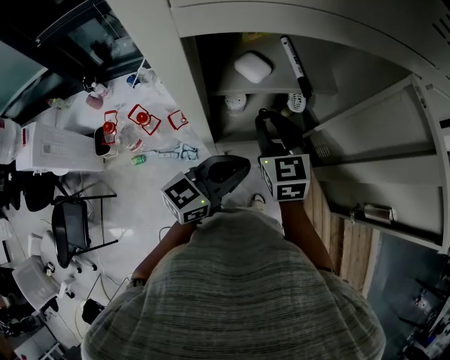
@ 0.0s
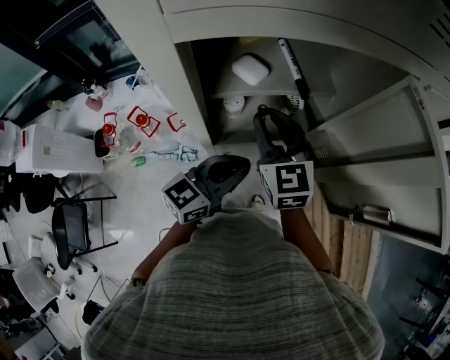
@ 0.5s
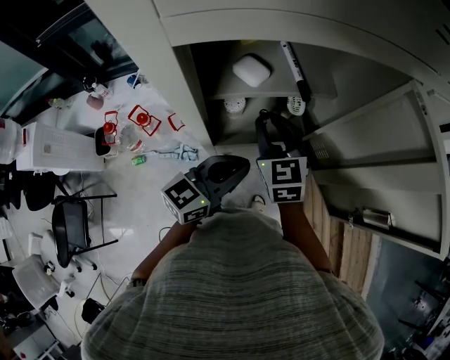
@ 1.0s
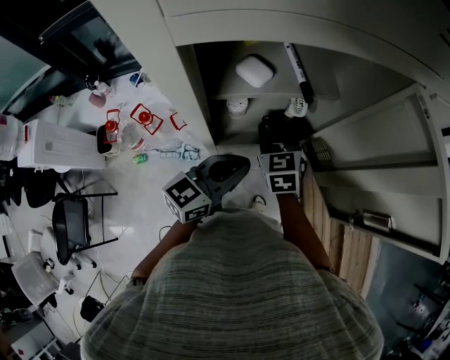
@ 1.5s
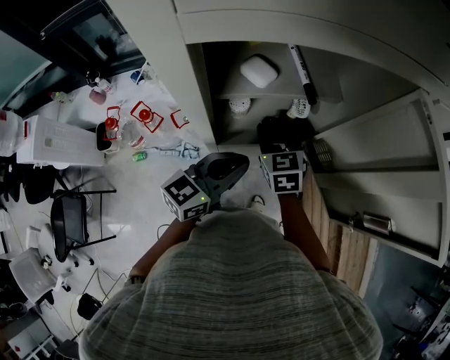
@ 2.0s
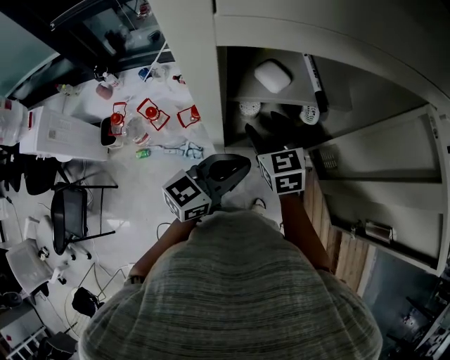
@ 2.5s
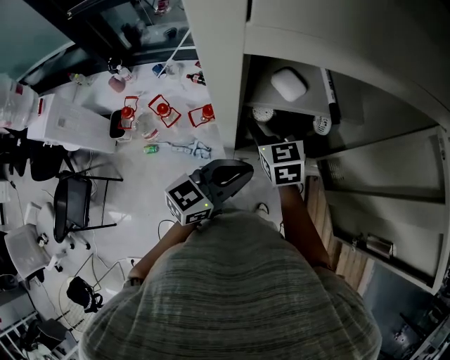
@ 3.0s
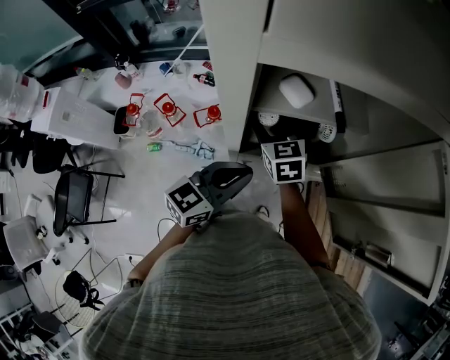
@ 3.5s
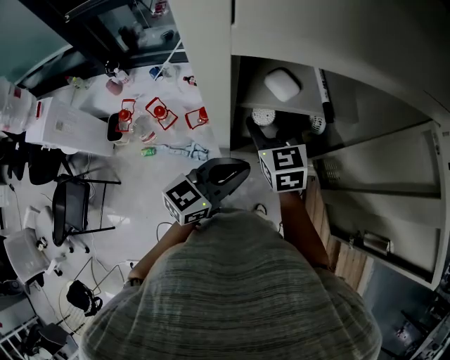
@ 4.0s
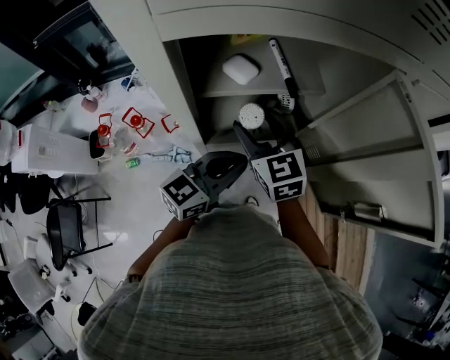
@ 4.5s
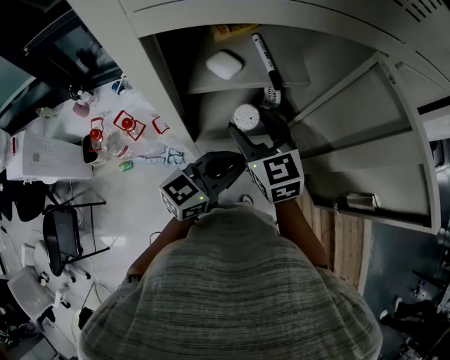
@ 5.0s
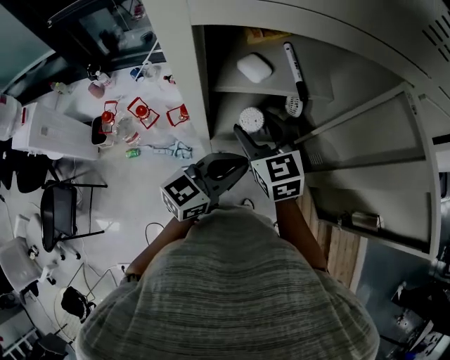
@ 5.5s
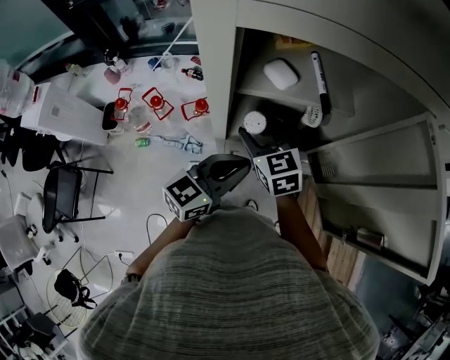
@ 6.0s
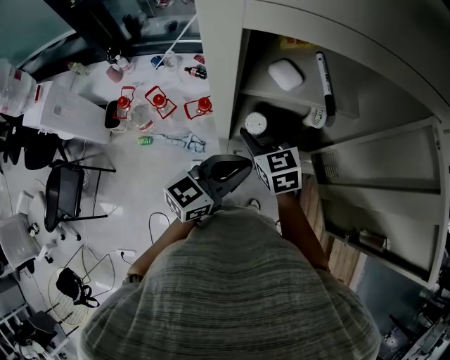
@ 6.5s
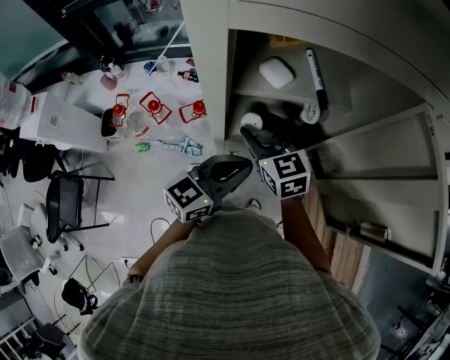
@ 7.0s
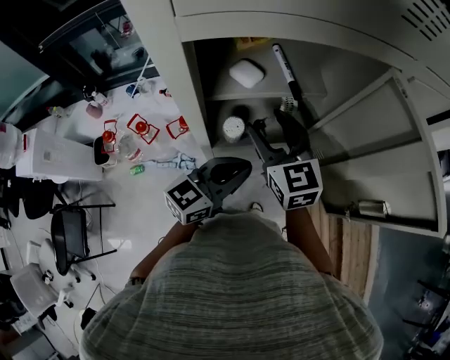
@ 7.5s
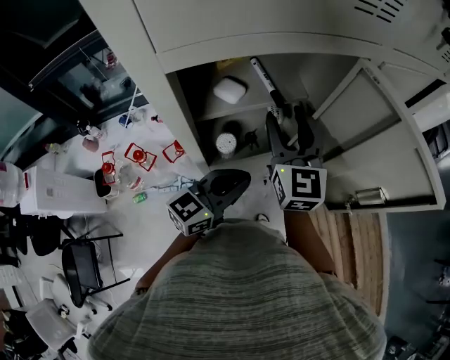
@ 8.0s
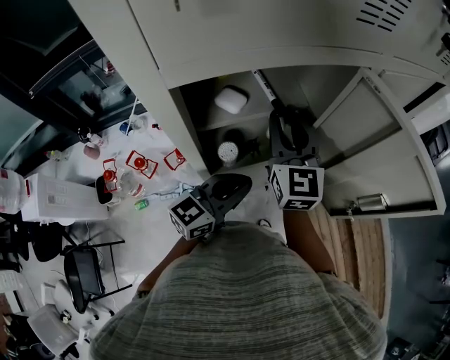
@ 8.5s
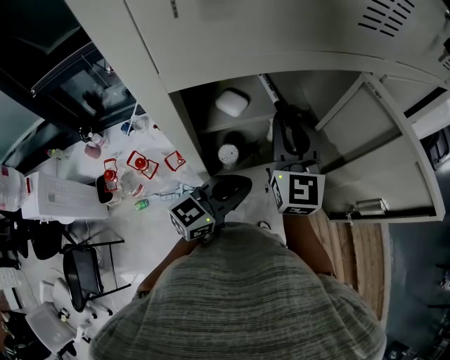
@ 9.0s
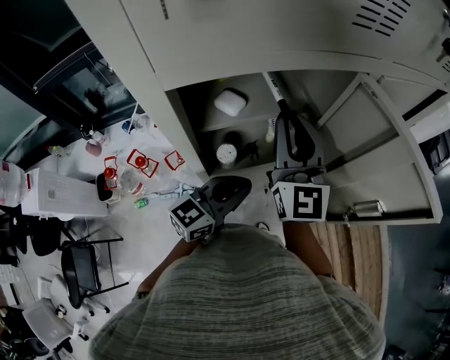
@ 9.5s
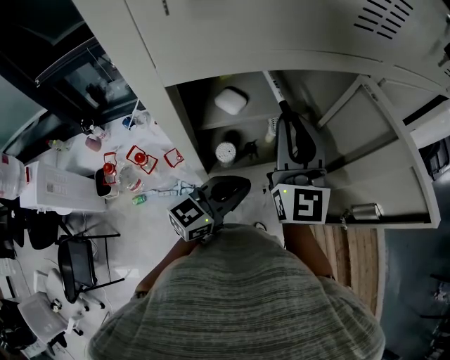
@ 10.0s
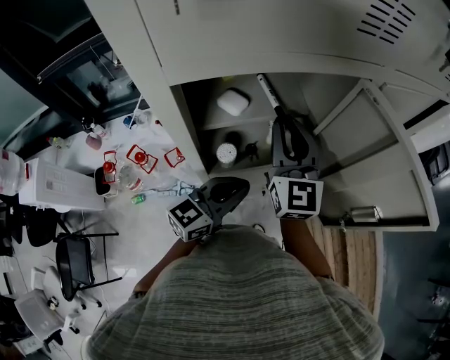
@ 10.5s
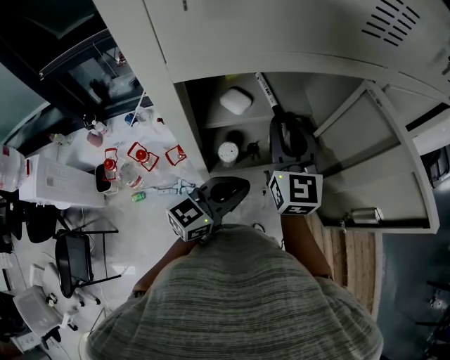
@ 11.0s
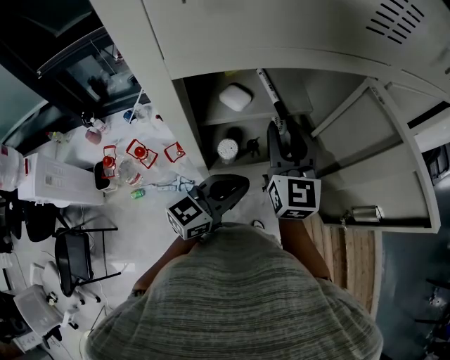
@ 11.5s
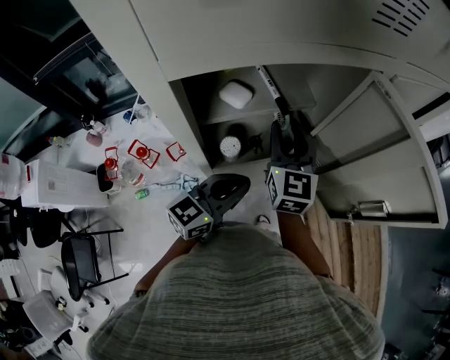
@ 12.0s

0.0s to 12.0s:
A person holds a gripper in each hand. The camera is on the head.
0.0s to 2.0s: The right gripper shifts approximately 5 cm downward.
2.0s to 4.0s: The right gripper is displaced to the left and upward by some 10 cm, and opens.
4.0s to 6.0s: The left gripper moves roughly 10 cm to the right and comes back.
6.0s to 8.0s: The right gripper moves upward, about 15 cm, and changes its angle by about 50 degrees.
8.0s to 10.0s: The right gripper goes some 5 cm upward, and closes its fingers.
10.0s to 12.0s: The right gripper travels downward by about 10 cm, and changes its angle by approximately 20 degrees.

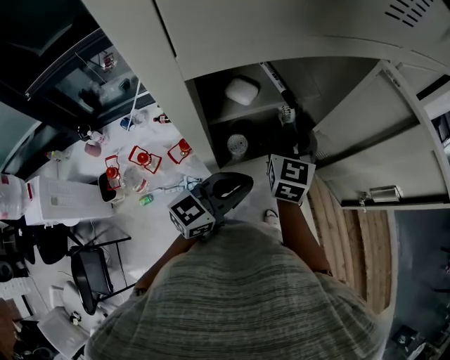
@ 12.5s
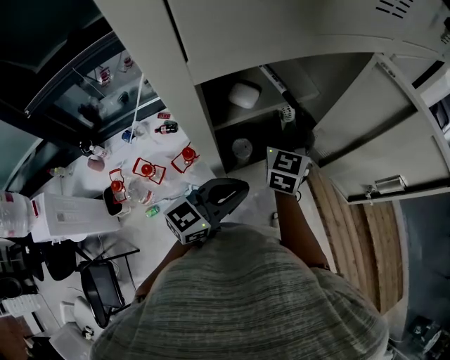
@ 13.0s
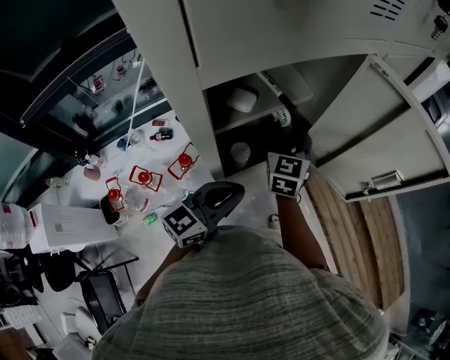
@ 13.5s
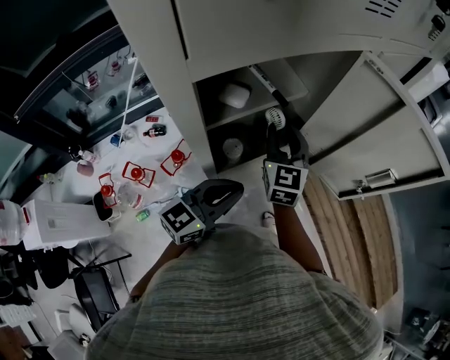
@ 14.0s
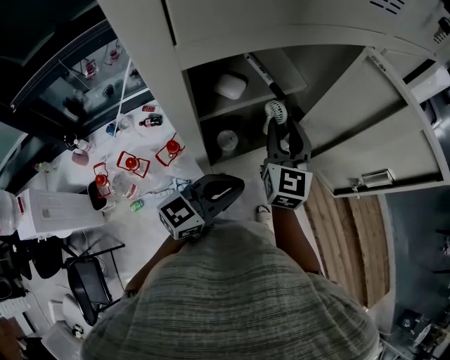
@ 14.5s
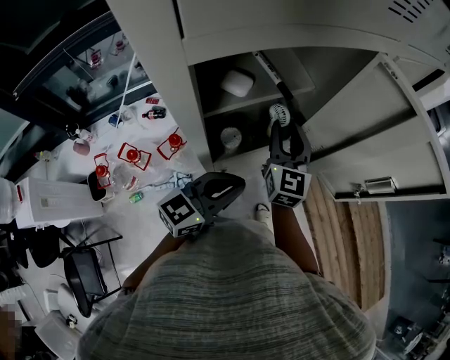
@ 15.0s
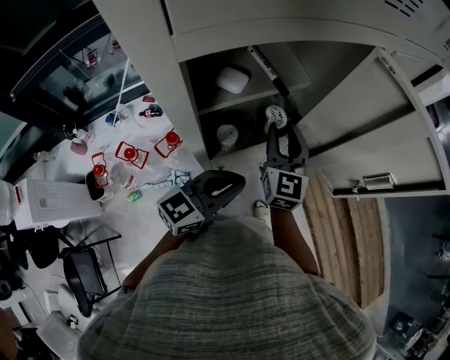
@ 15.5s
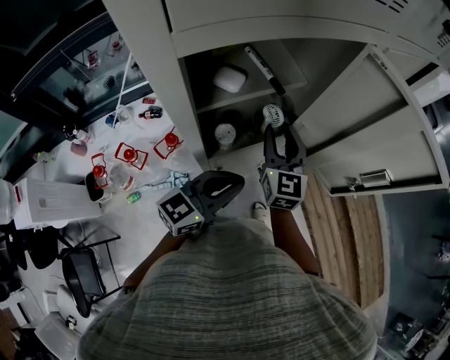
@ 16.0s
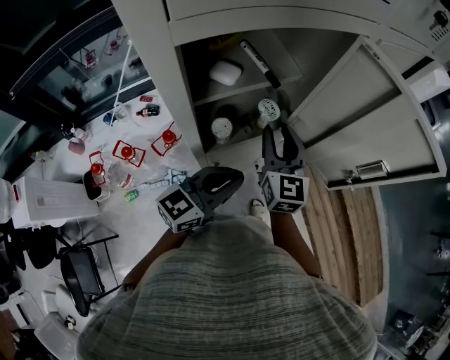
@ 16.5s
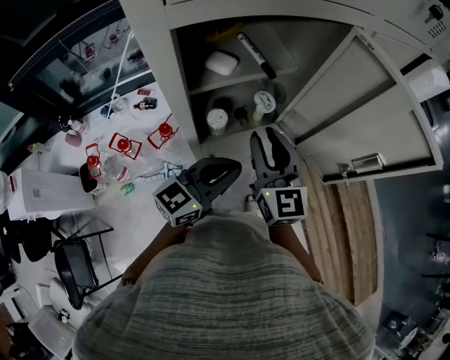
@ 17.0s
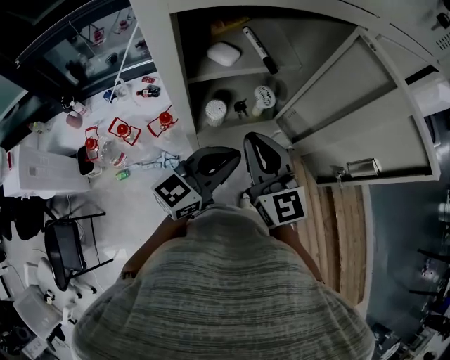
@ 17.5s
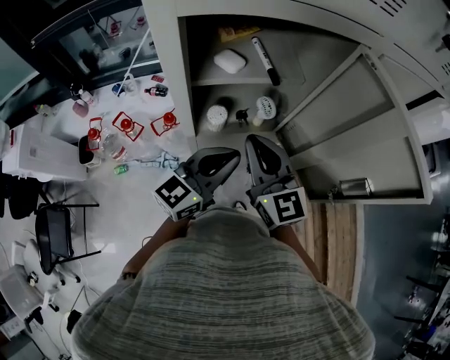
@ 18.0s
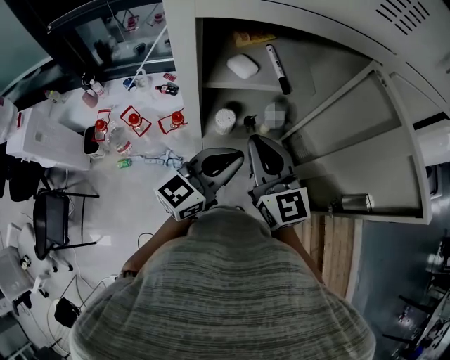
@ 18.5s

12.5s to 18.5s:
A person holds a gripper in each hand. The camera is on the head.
12.5s to 14.5s: The grippers move only a little.
14.5s to 16.5s: The grippers make only small movements.
16.5s to 18.5s: The left gripper changes its angle by approximately 30 degrees, while the right gripper shifts by roughly 10 cm, rotates about 40 degrees, and closes its fingers.

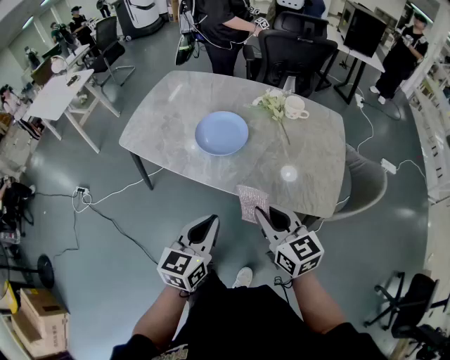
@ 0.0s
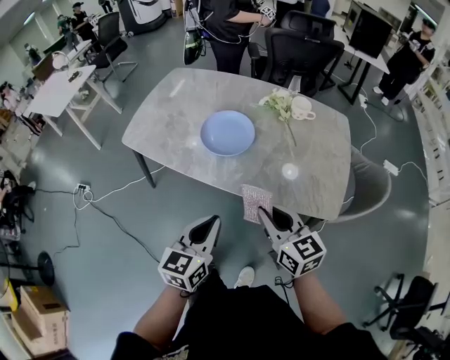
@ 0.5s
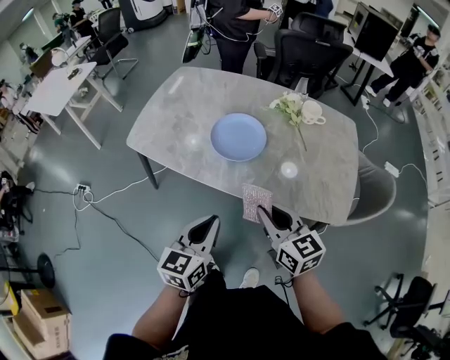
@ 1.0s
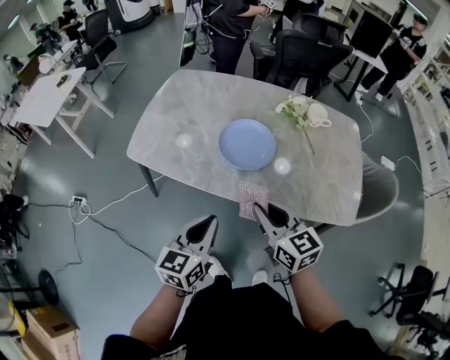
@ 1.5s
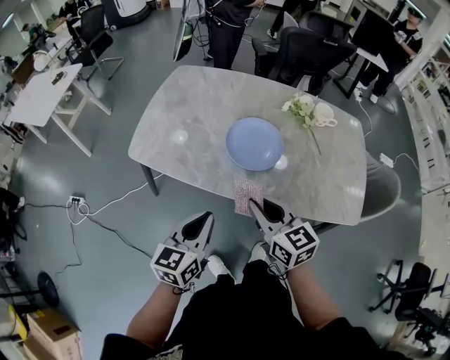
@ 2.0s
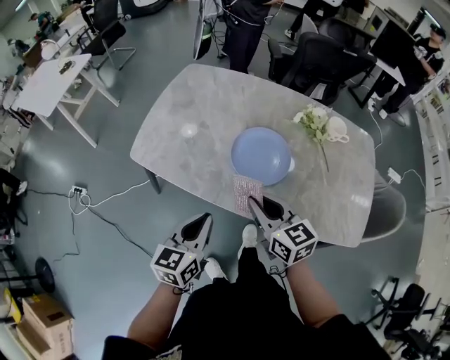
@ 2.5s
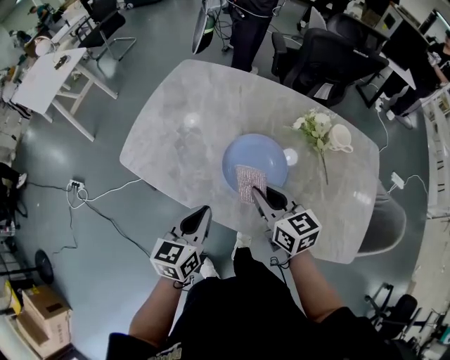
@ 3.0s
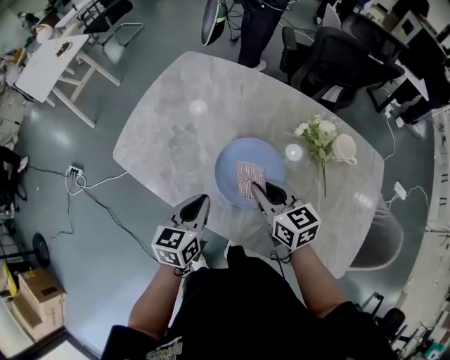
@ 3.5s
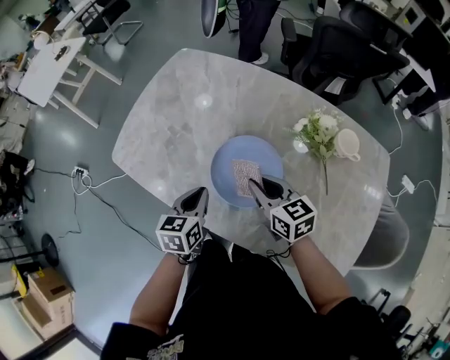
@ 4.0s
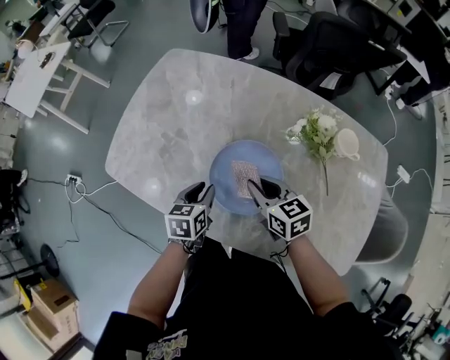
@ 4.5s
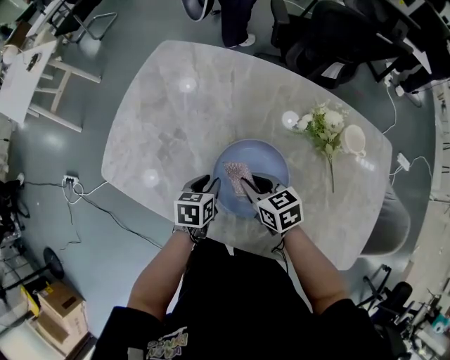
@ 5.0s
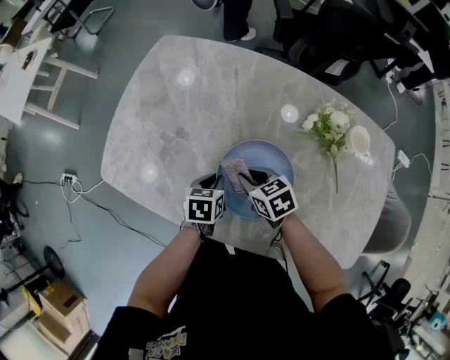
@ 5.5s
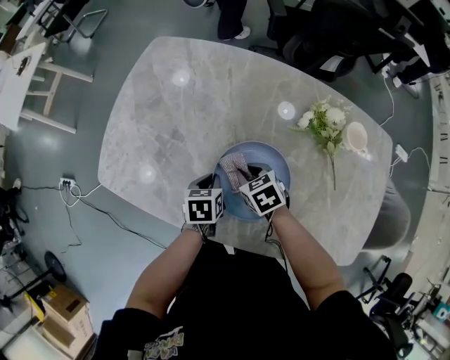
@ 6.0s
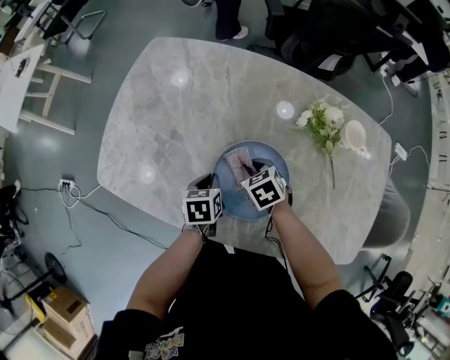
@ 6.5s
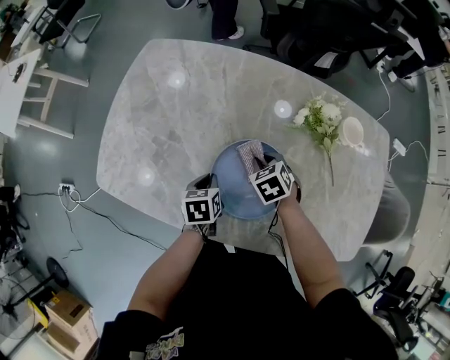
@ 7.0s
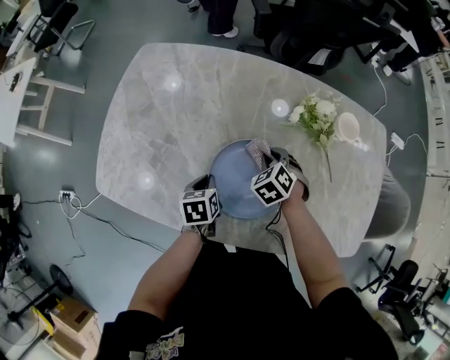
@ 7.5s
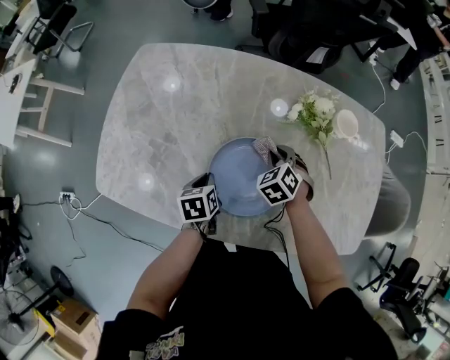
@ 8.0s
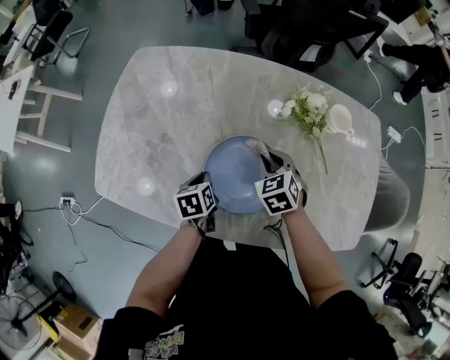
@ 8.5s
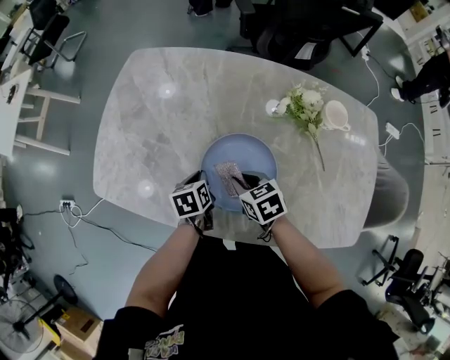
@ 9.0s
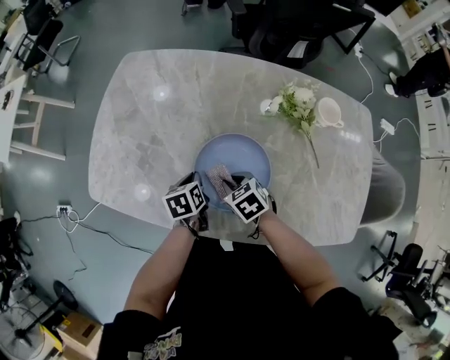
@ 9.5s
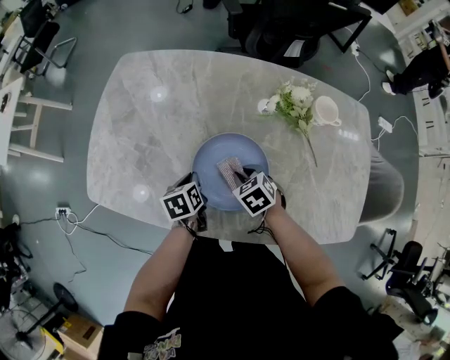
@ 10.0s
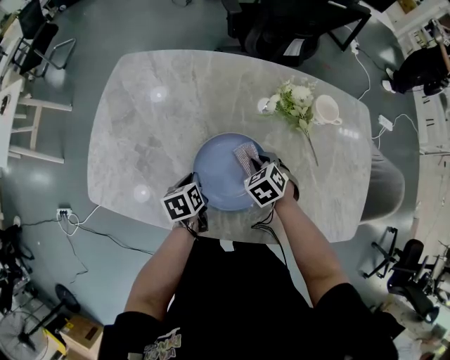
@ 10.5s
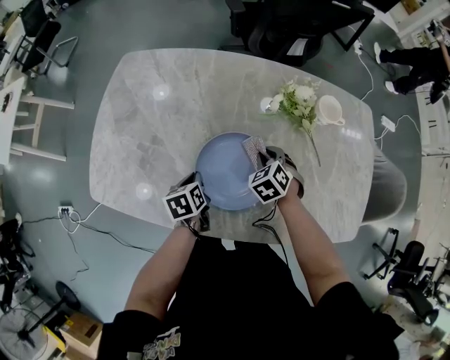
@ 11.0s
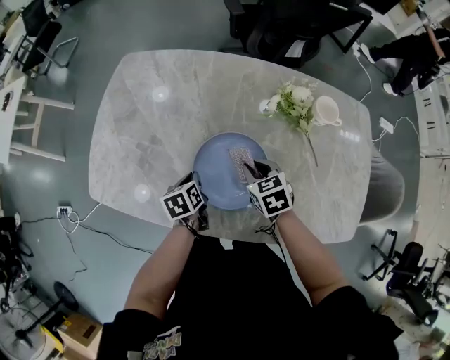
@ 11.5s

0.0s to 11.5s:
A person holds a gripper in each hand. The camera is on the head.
0.0s to 2.0s: The two grippers go approximately 25 cm to the left and forward.
2.0s to 4.0s: The right gripper is displaced forward, to the right and downward by about 30 cm. Meanwhile the left gripper travels forward, downward and to the right by roughly 30 cm, and changes its angle by some 30 degrees.
4.0s to 6.0s: Both grippers move downward and forward, approximately 15 cm. The left gripper rotates about 20 degrees, and opens, then closes again; the right gripper angles its fingers downward, by about 30 degrees.
6.0s to 7.5s: The right gripper changes place by approximately 10 cm, and swivels some 30 degrees.
7.5s to 9.5s: The right gripper ends up approximately 15 cm from where it was, and swivels approximately 30 degrees.
9.5s to 11.5s: The right gripper changes place by some 10 cm.
